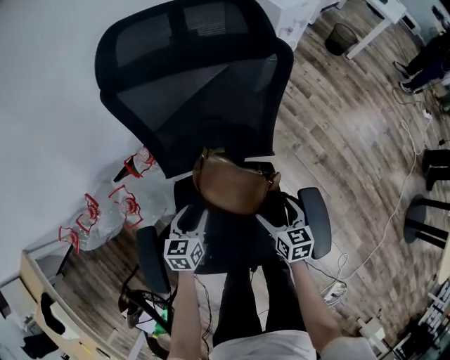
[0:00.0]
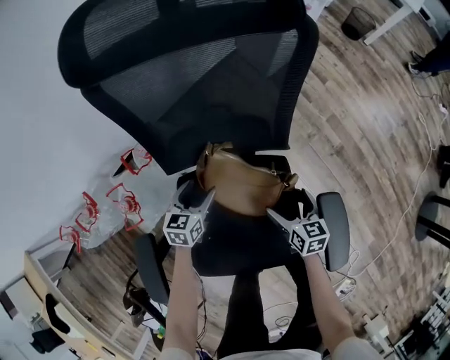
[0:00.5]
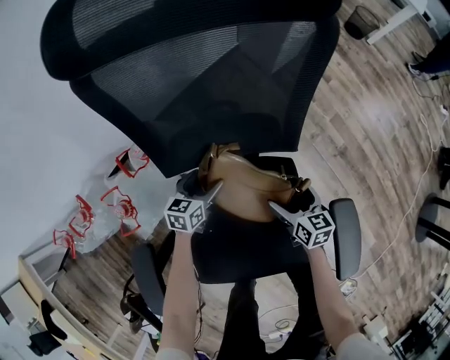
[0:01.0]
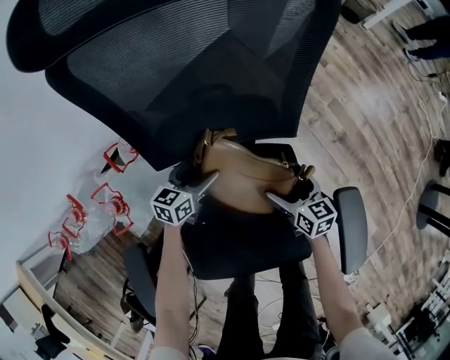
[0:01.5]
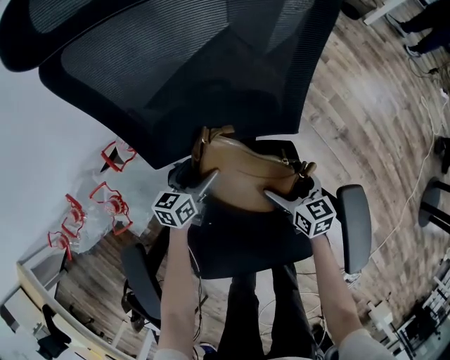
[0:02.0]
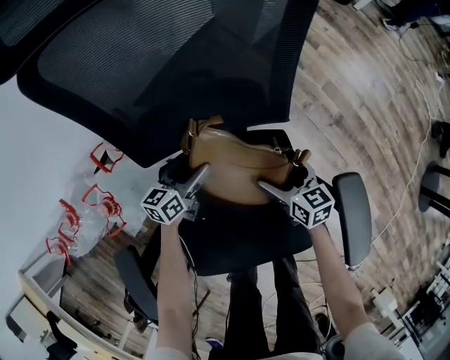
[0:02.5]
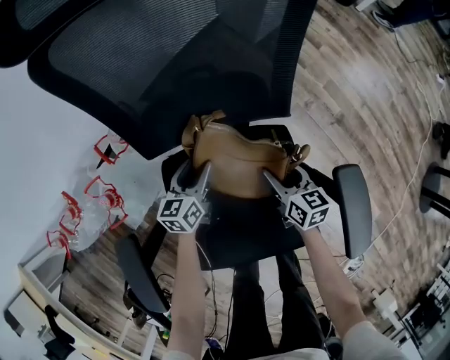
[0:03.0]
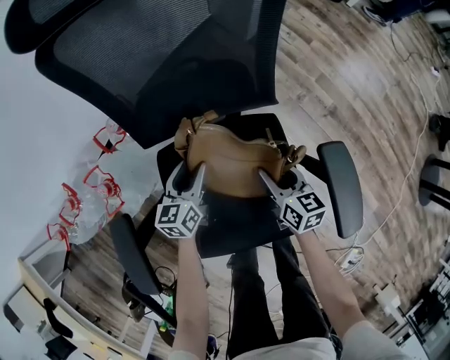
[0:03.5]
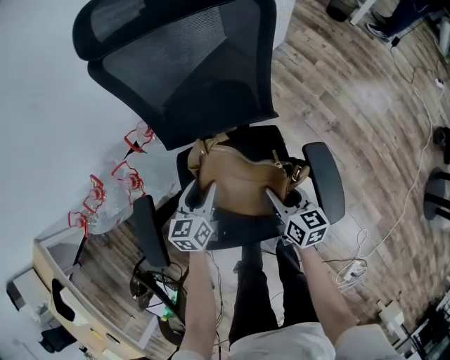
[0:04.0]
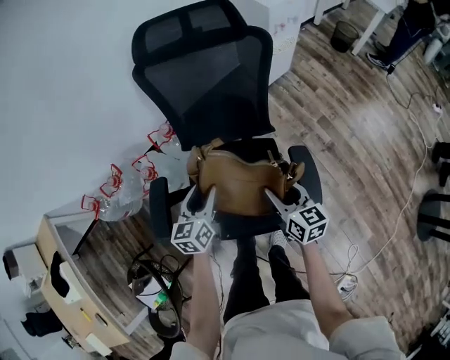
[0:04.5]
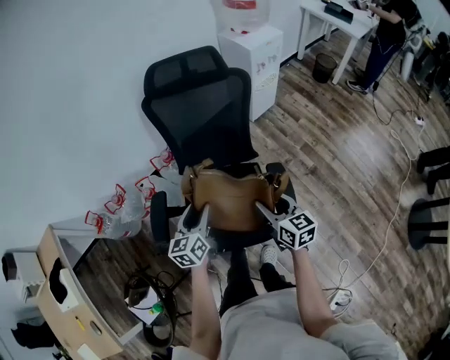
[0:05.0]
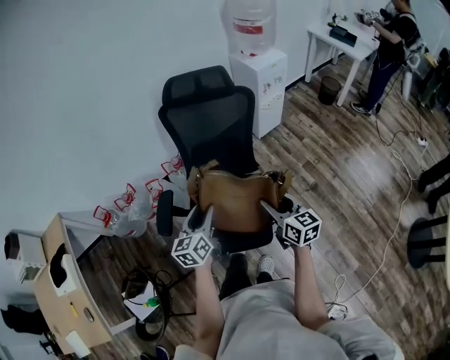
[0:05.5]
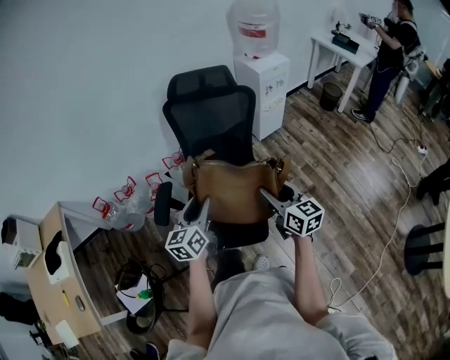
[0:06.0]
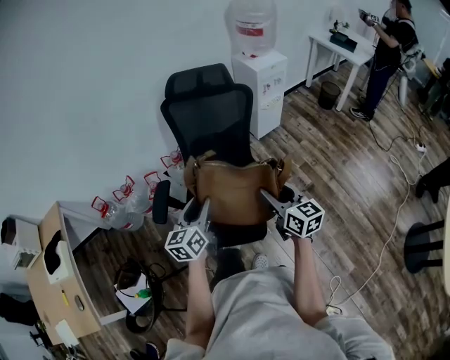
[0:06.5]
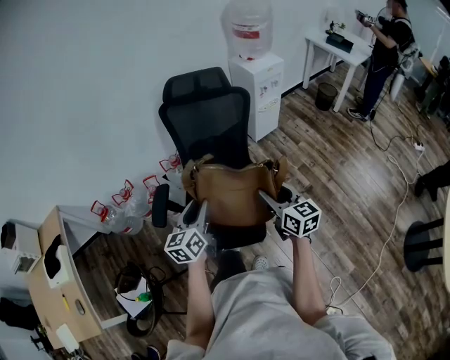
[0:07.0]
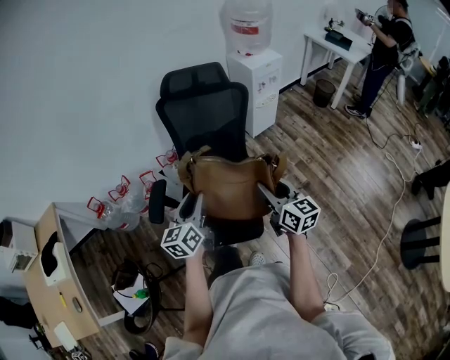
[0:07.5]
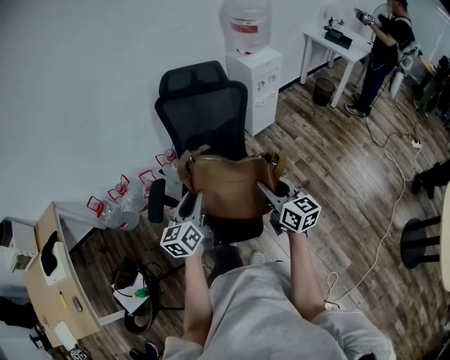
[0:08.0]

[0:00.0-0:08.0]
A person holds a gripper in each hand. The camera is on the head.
0:00.0 to 0:02.0: The left gripper shifts roughly 20 cm downward and forward, and opens; the right gripper is displaced downward by some 15 cm.
0:02.0 to 0:04.0: Both grippers travel together upward and backward, about 20 cm. The left gripper closes its fingers. Meanwhile the right gripper closes up.
0:04.0 to 0:06.0: The right gripper shifts some 35 cm upward, and swivels approximately 30 degrees; the left gripper travels upward and backward by some 40 cm, and changes its angle by about 20 degrees.
0:06.0 to 0:08.0: The grippers stay close to where they were, moving slightly.

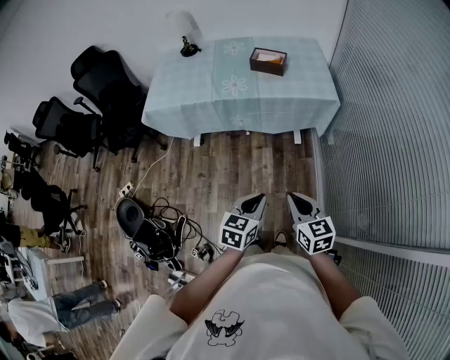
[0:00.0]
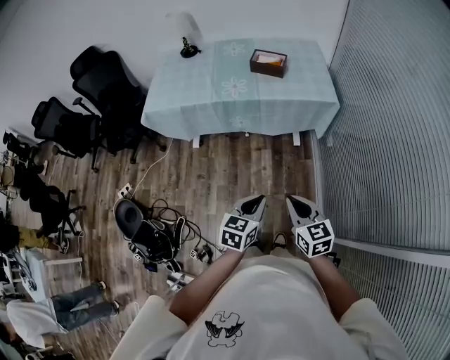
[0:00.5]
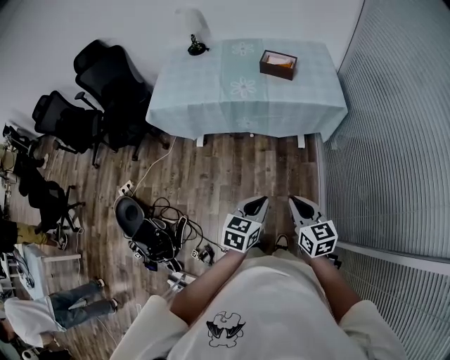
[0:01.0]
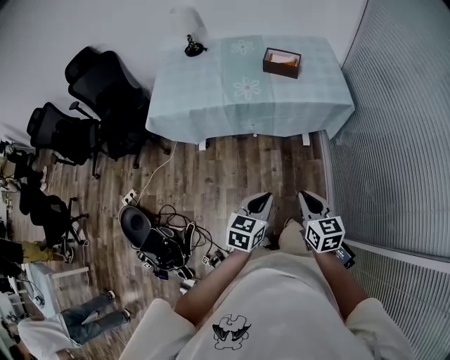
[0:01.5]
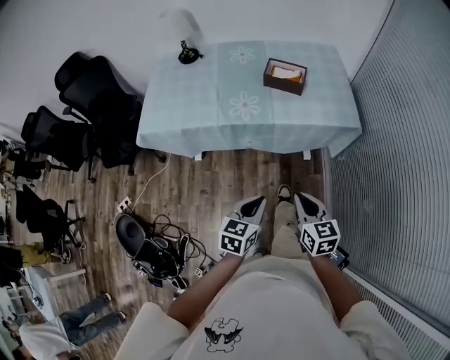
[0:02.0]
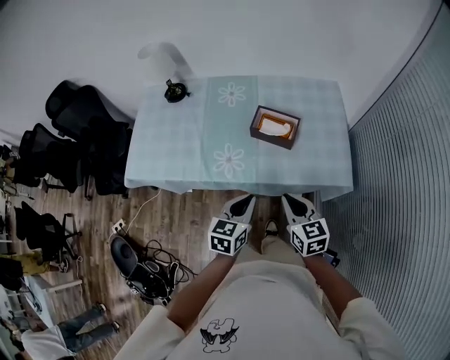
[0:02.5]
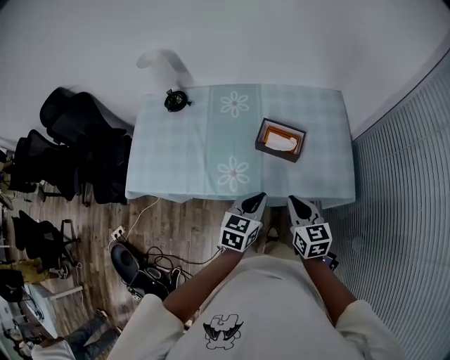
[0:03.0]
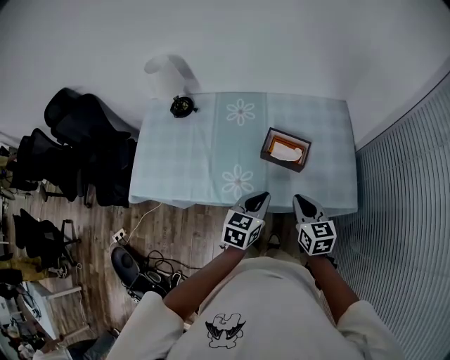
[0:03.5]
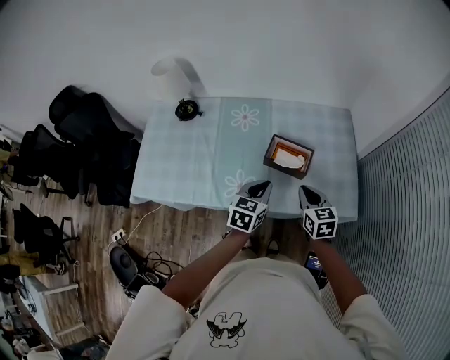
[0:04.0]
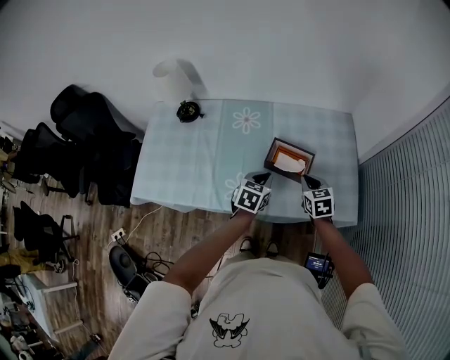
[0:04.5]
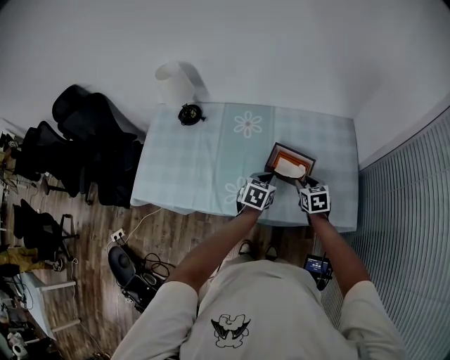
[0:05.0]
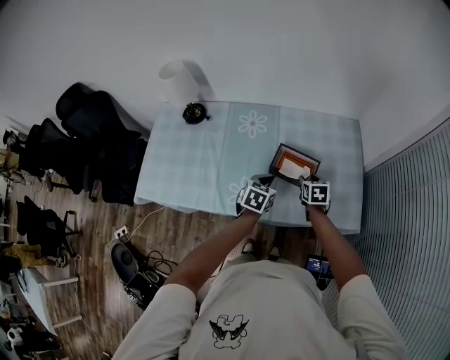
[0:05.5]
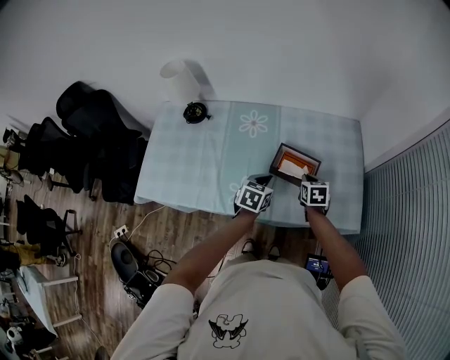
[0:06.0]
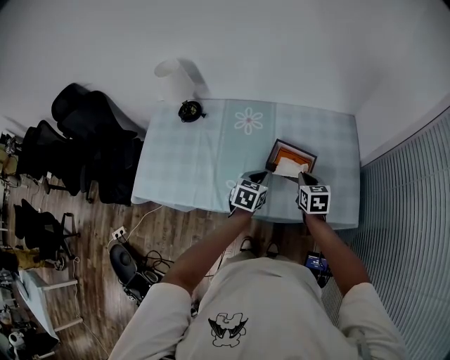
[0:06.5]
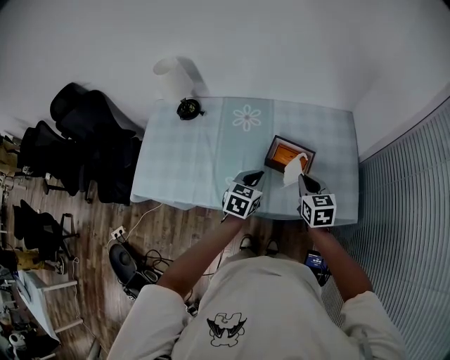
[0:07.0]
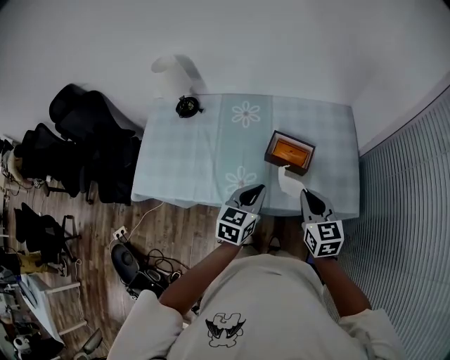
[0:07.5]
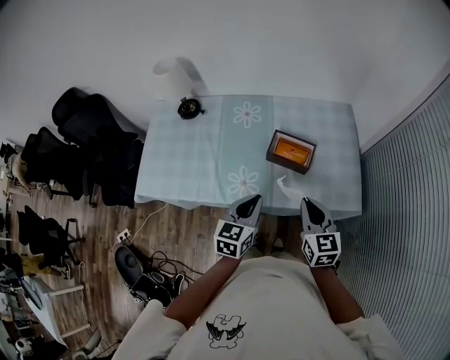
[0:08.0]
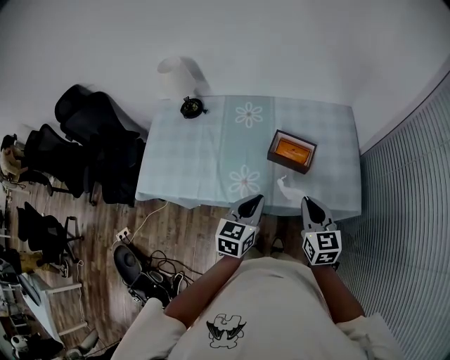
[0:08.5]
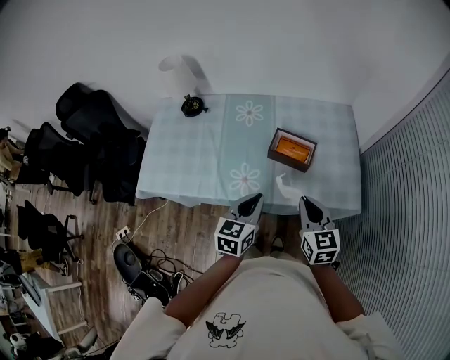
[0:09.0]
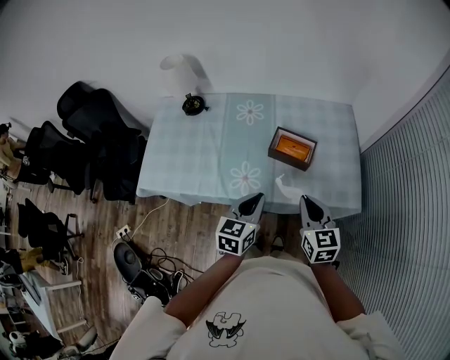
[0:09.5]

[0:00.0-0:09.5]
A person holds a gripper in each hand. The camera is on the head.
0:00.0 to 0:02.0: The left gripper shifts about 20 cm forward and to the left, while the right gripper goes roughly 20 cm forward.
0:02.0 to 0:04.0: The two grippers travel together, forward, about 40 cm.
0:04.0 to 0:05.5: The left gripper moves forward and downward, approximately 10 cm. Meanwhile the right gripper goes roughly 15 cm forward and downward, and opens its fingers.
0:05.5 to 0:07.5: The right gripper heads upward and backward, covering about 25 cm, swivels some 30 degrees, and closes up; the left gripper goes roughly 15 cm upward and backward.
0:07.5 to 0:09.5: The two grippers go roughly 5 cm backward.

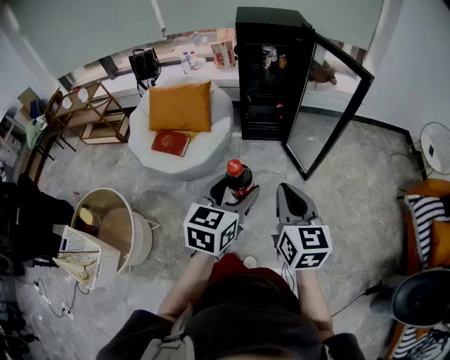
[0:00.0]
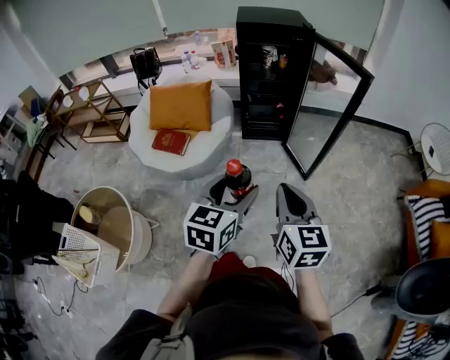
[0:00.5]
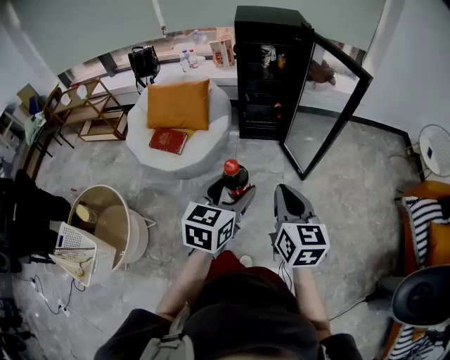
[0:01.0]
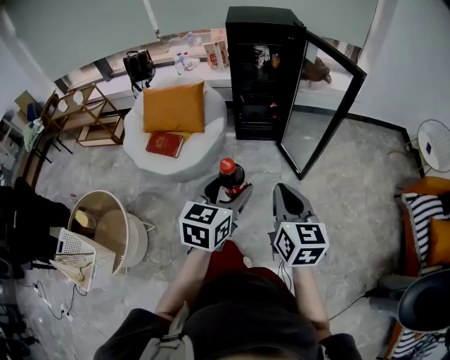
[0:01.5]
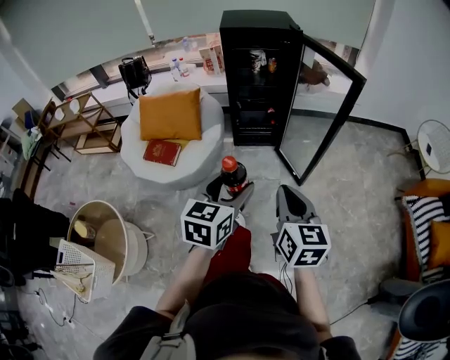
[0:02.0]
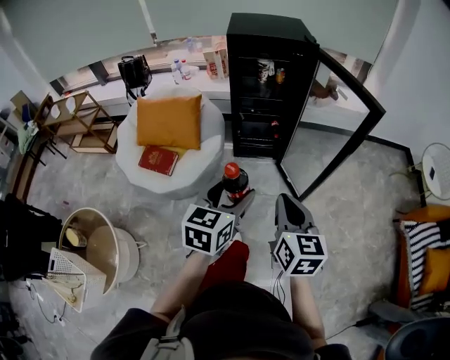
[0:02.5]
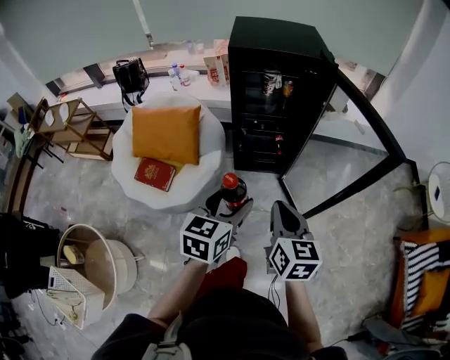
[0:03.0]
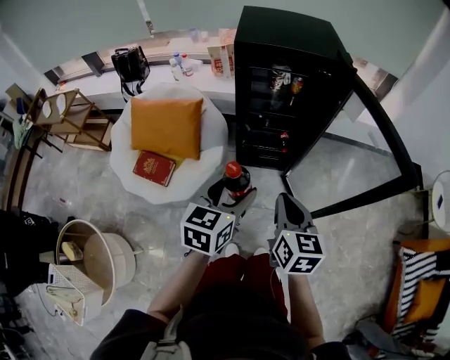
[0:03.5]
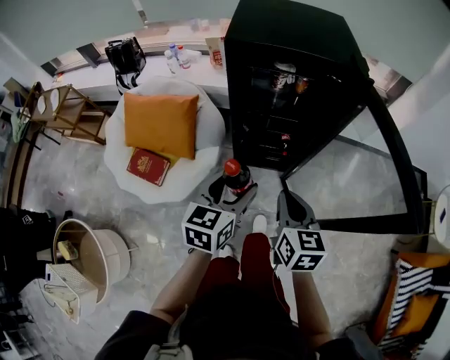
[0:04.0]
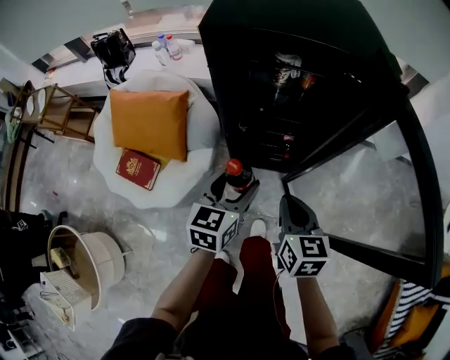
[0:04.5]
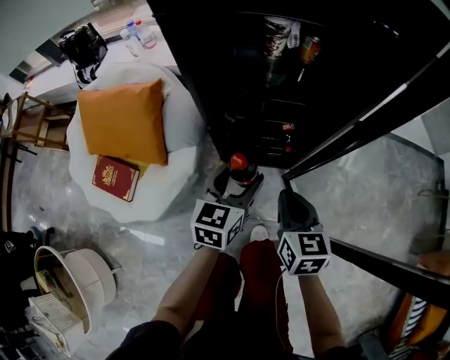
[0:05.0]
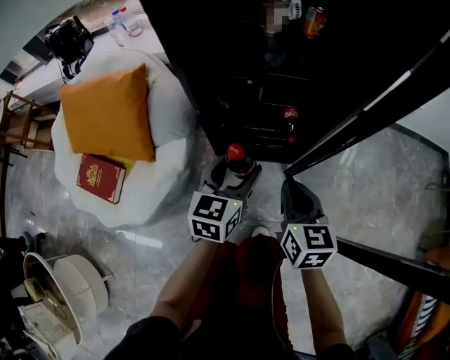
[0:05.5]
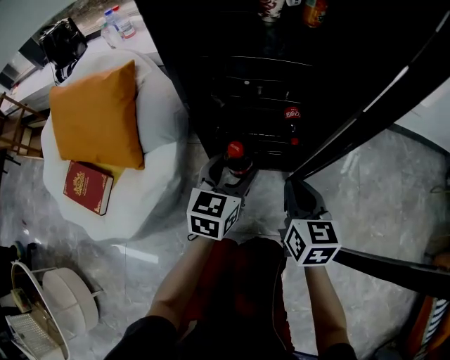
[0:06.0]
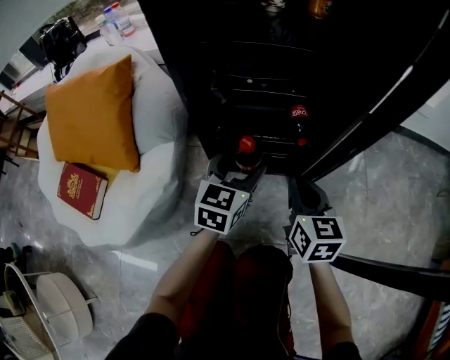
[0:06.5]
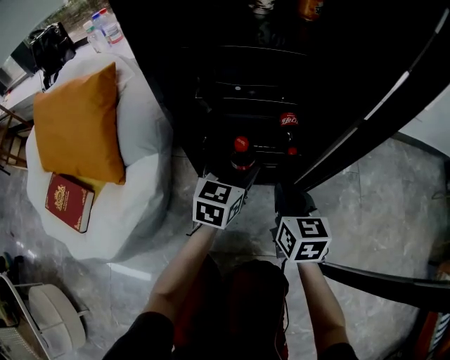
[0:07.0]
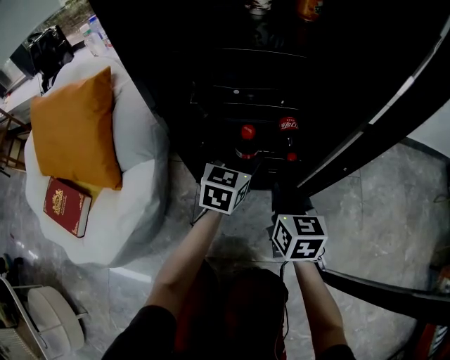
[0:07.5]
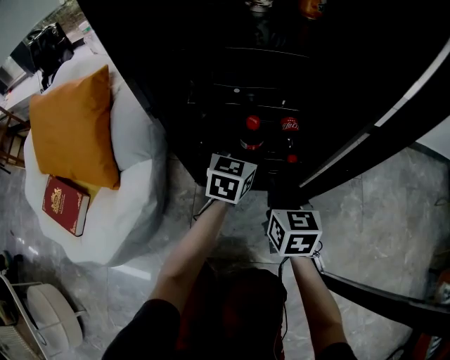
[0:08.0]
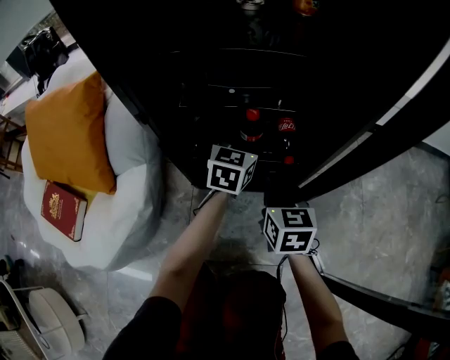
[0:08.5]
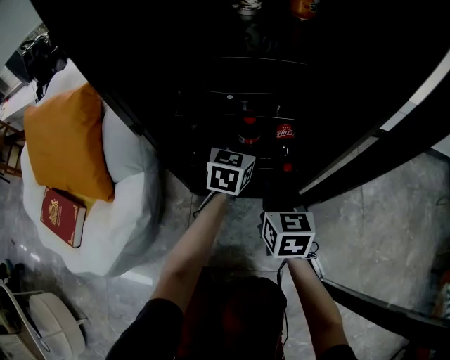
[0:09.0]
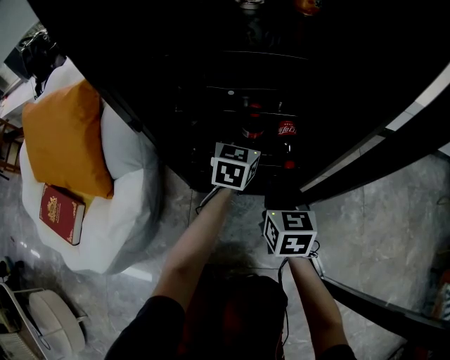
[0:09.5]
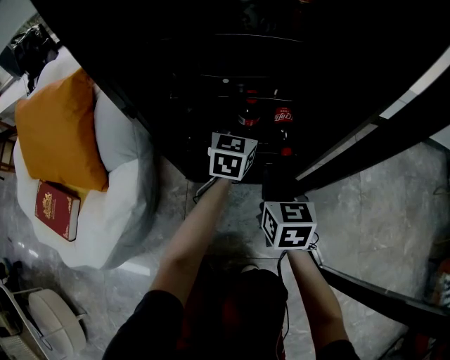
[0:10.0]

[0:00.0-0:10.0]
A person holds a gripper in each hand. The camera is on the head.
0:00.0 to 0:02.0: The grippers both shift forward by roughly 5 cm.
0:02.0 to 0:04.0: The pair of grippers is taken forward, approximately 40 cm.
0:04.0 to 0:06.0: The right gripper moves downward, approximately 40 cm. The left gripper is displaced downward and forward by about 50 cm.
0:06.0 to 0:08.0: The right gripper heads downward and forward, covering approximately 15 cm, while the left gripper is displaced forward and downward by roughly 20 cm.
0:08.0 to 0:10.0: The left gripper goes about 5 cm forward.
